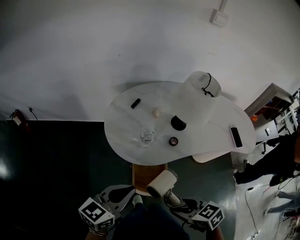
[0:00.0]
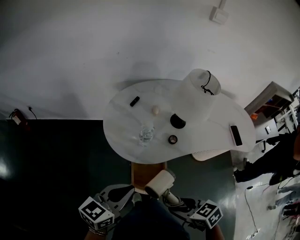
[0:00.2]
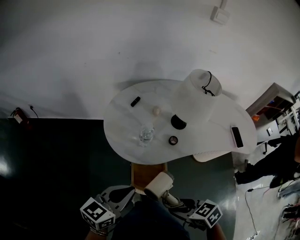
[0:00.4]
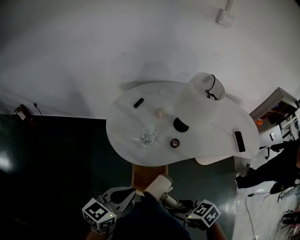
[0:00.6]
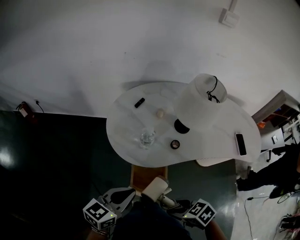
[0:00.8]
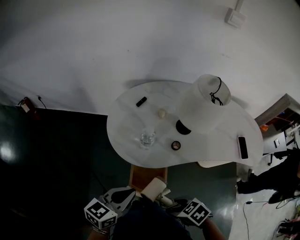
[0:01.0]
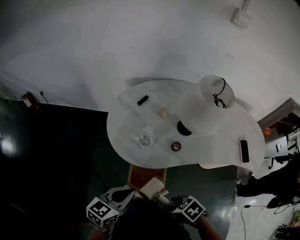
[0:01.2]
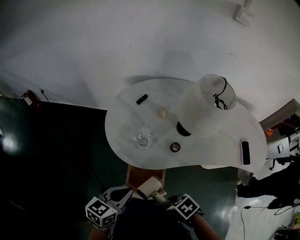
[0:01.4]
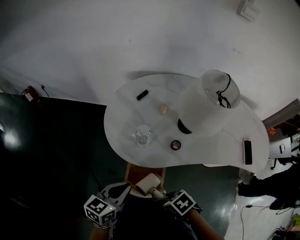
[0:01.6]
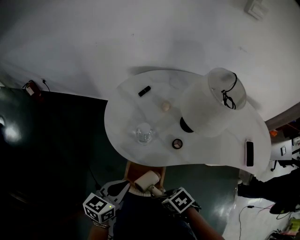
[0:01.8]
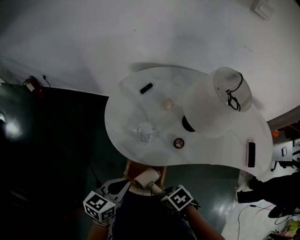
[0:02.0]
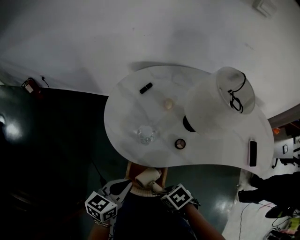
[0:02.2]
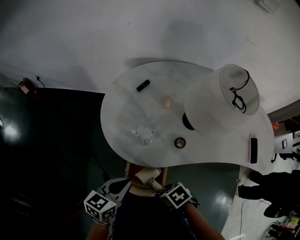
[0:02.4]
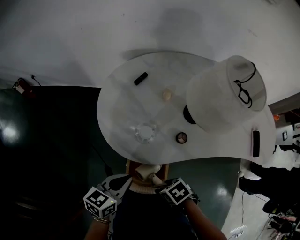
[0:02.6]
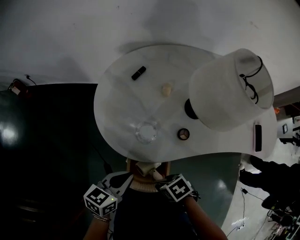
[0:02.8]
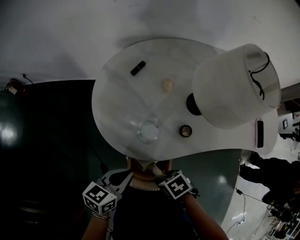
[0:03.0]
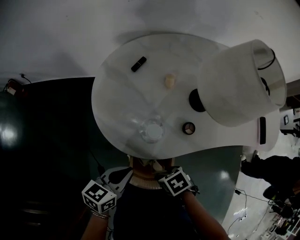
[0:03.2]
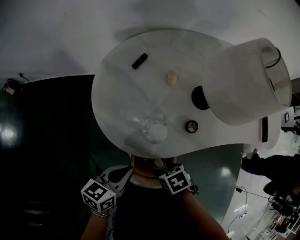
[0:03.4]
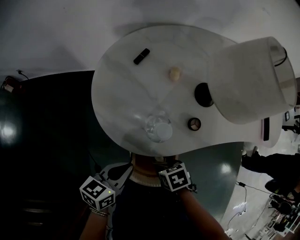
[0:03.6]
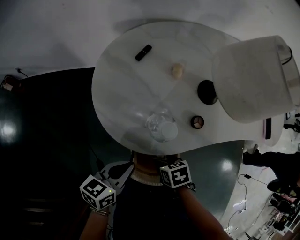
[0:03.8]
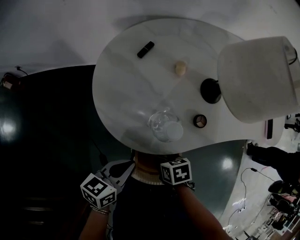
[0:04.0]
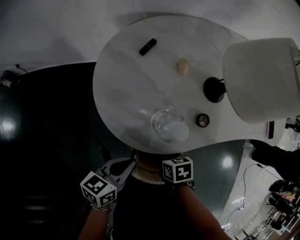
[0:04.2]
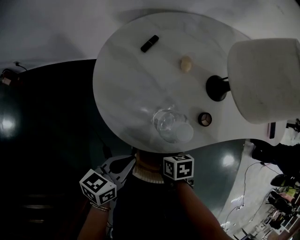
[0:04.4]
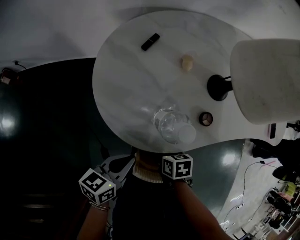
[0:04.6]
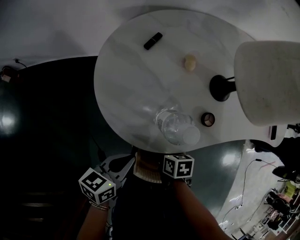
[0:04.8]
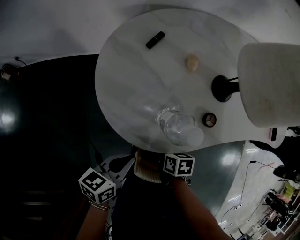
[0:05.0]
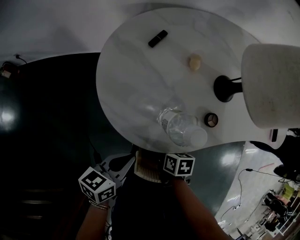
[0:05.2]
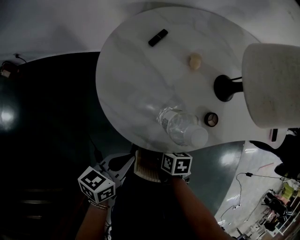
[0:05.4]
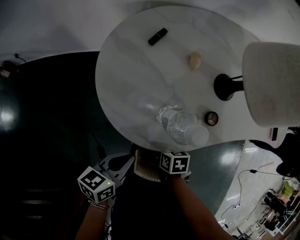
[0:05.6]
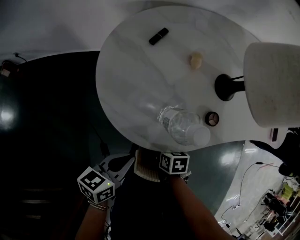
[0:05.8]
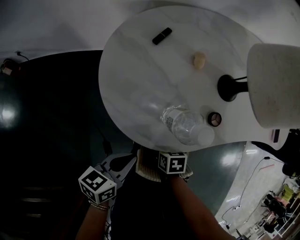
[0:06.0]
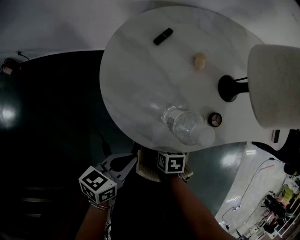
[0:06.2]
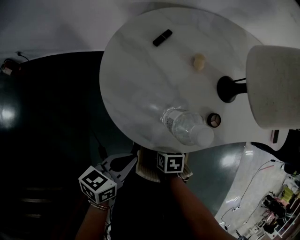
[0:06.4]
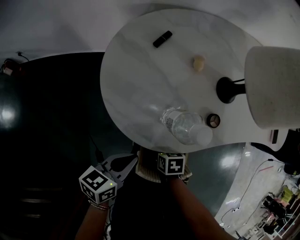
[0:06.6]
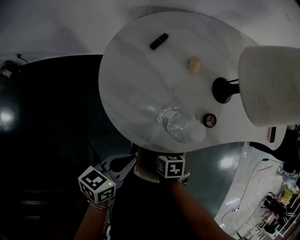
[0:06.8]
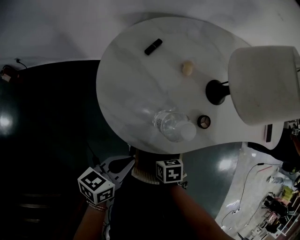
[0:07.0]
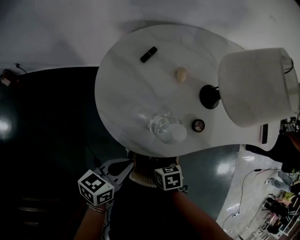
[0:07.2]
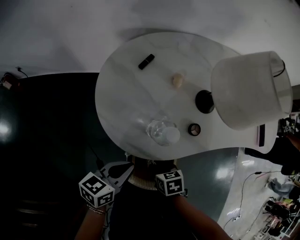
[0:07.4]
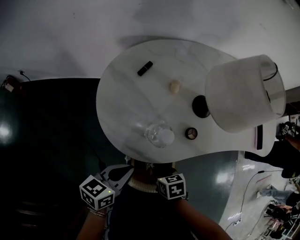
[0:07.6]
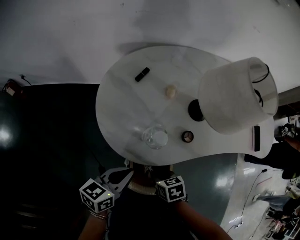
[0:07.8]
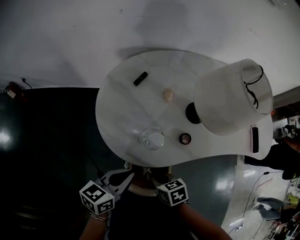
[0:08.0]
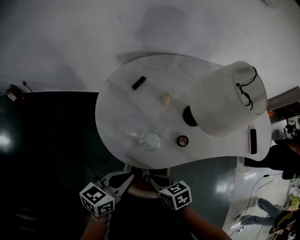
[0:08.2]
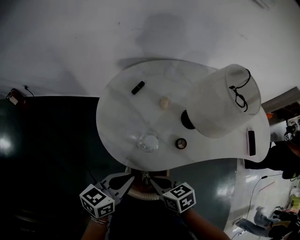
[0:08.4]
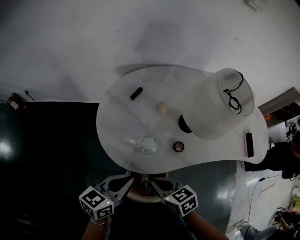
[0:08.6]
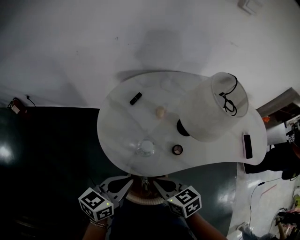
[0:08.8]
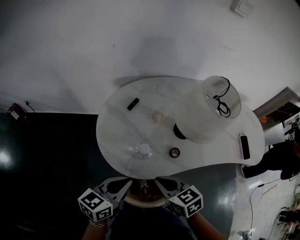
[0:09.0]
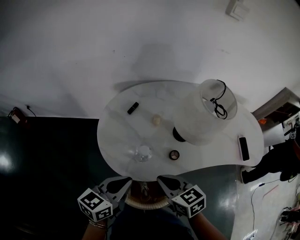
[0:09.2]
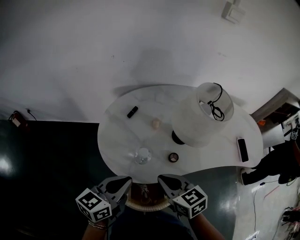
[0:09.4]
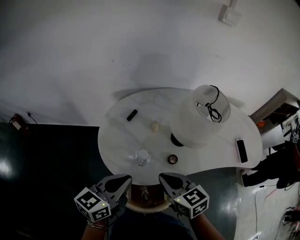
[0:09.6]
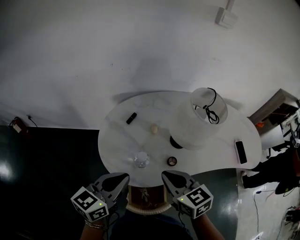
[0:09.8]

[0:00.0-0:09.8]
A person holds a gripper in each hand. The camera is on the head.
0:00.0 to 0:01.4: The two grippers go some 10 cm downward. The right gripper swivels approximately 30 degrees.
0:01.4 to 0:02.8: The left gripper ends up some 10 cm from where it was. The right gripper ends up approximately 10 cm from where it was.
0:02.8 to 0:04.2: The right gripper ends up roughly 10 cm from where it was, and changes its angle by roughly 30 degrees, while the left gripper shifts by some 5 cm.
0:04.2 to 0:05.6: The right gripper travels downward by some 5 cm.
0:05.6 to 0:07.0: There are only small adjustments of the grippers.
0:07.0 to 0:08.4: The right gripper goes about 15 cm upward, turns by roughly 30 degrees, and closes its fingers; the left gripper goes about 10 cm upward.
0:08.4 to 0:09.8: The two grippers go roughly 15 cm upward and forward. The right gripper changes its angle by about 30 degrees.

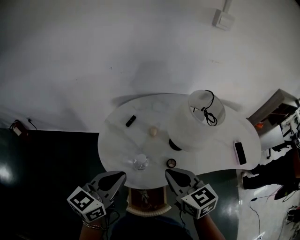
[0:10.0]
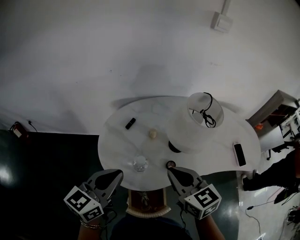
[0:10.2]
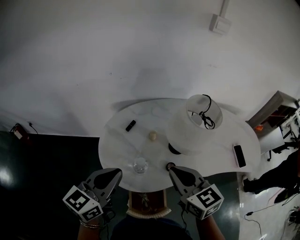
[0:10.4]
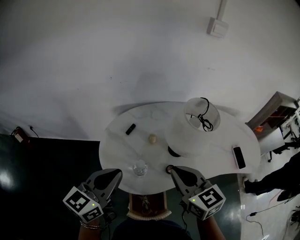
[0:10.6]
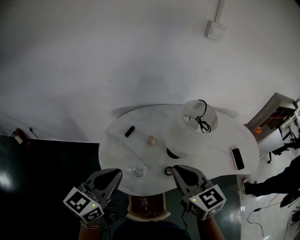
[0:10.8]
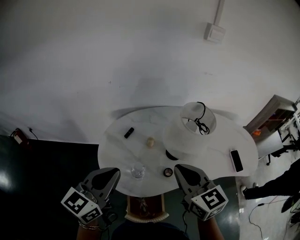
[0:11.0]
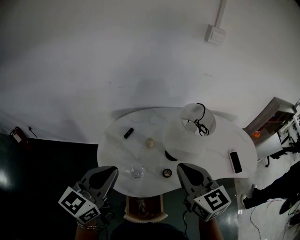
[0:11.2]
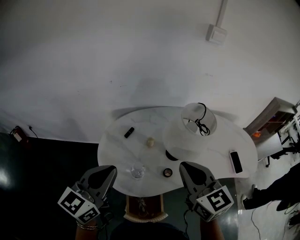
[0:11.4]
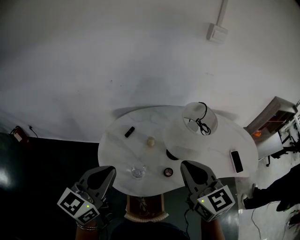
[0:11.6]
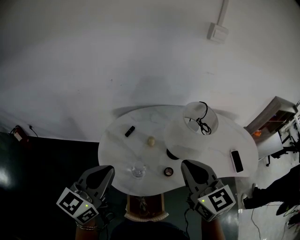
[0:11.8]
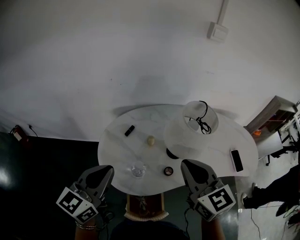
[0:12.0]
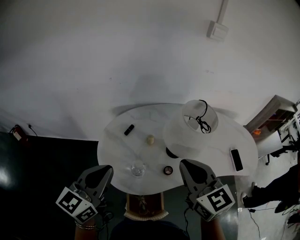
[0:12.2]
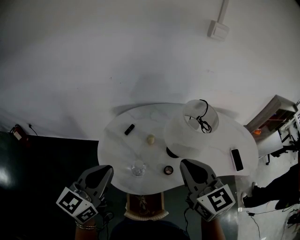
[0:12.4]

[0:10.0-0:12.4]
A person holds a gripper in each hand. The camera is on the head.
0:10.0 to 0:11.2: Both grippers move upward, some 10 cm.
0:11.2 to 0:12.4: There are only small adjustments of the grippers.

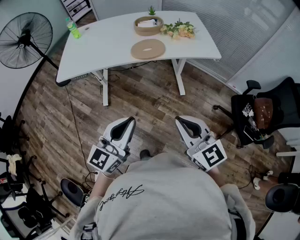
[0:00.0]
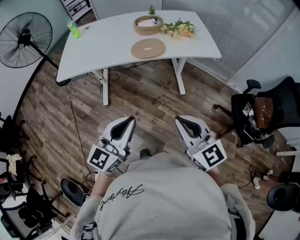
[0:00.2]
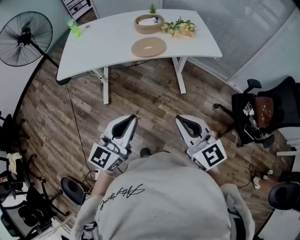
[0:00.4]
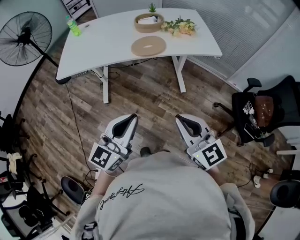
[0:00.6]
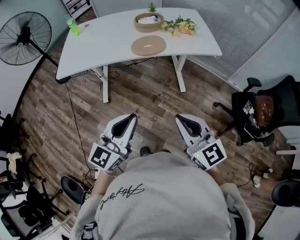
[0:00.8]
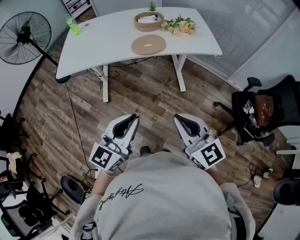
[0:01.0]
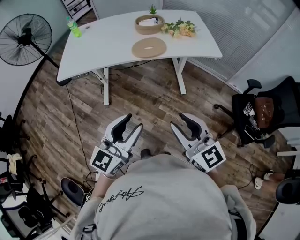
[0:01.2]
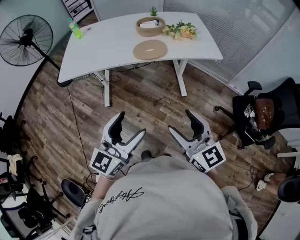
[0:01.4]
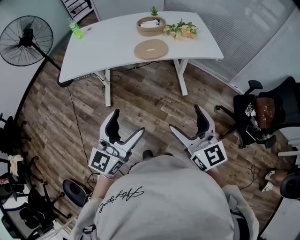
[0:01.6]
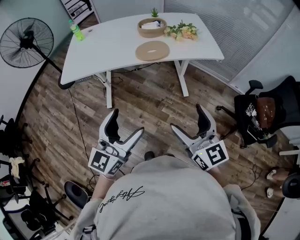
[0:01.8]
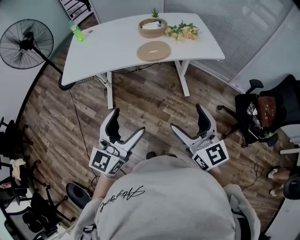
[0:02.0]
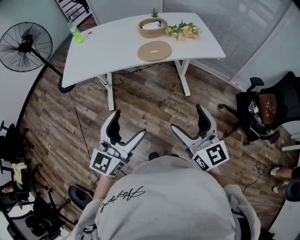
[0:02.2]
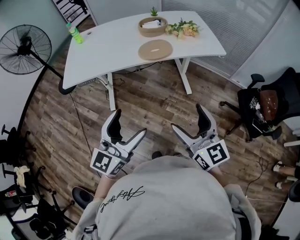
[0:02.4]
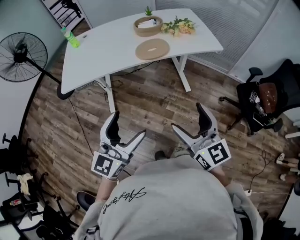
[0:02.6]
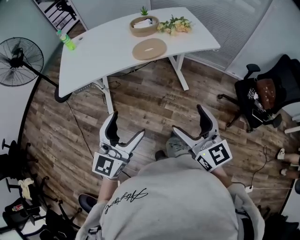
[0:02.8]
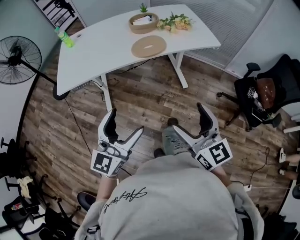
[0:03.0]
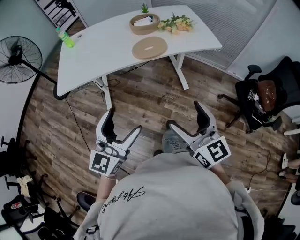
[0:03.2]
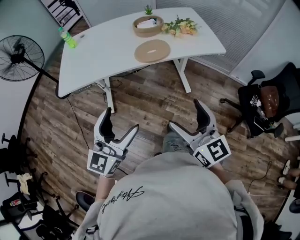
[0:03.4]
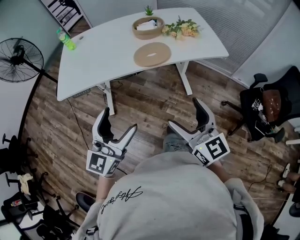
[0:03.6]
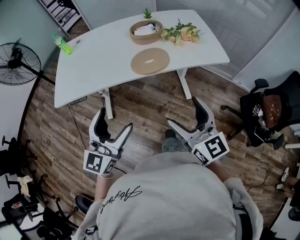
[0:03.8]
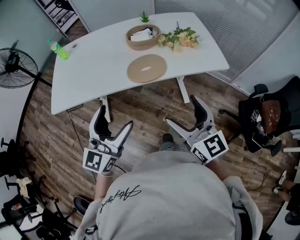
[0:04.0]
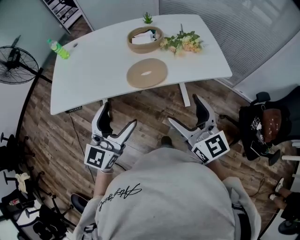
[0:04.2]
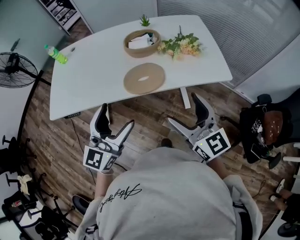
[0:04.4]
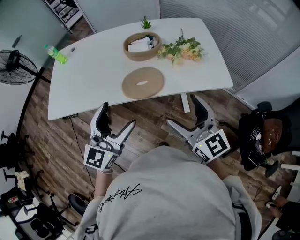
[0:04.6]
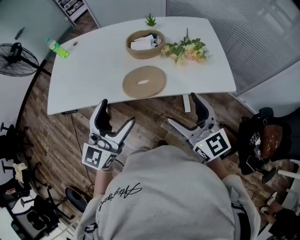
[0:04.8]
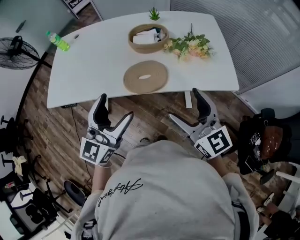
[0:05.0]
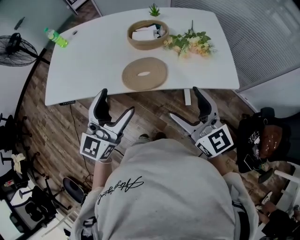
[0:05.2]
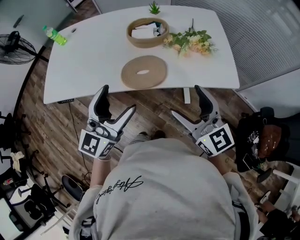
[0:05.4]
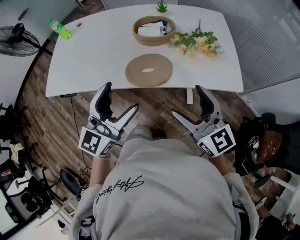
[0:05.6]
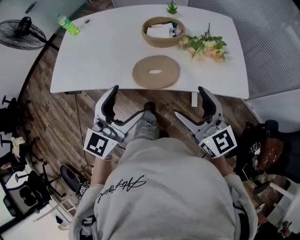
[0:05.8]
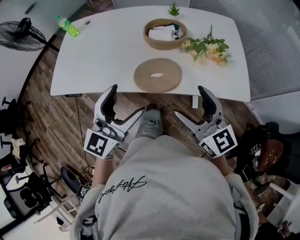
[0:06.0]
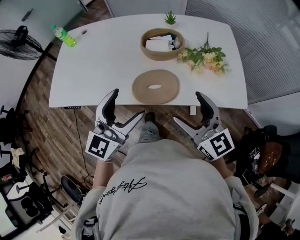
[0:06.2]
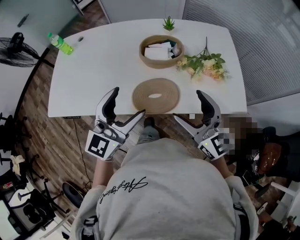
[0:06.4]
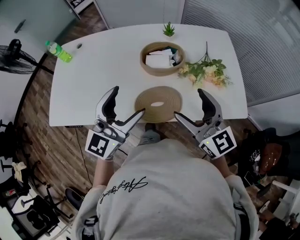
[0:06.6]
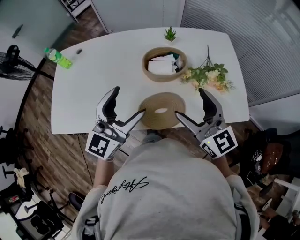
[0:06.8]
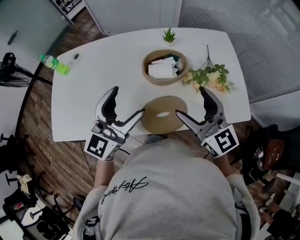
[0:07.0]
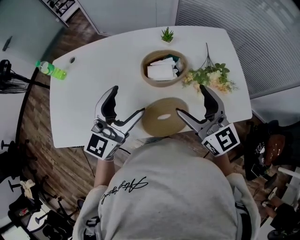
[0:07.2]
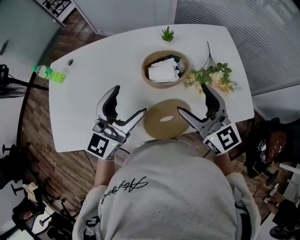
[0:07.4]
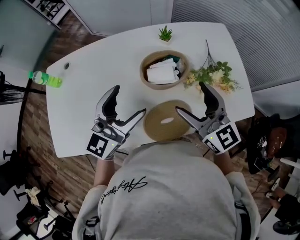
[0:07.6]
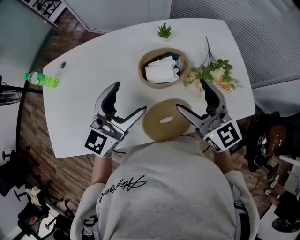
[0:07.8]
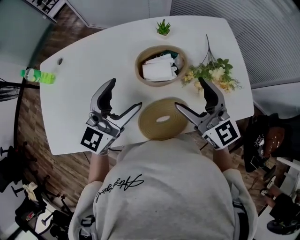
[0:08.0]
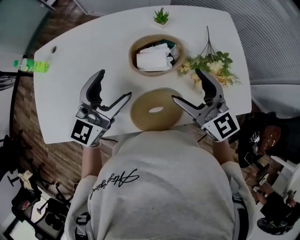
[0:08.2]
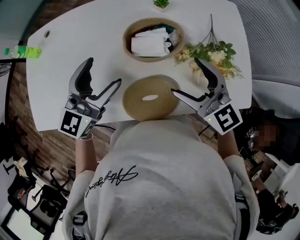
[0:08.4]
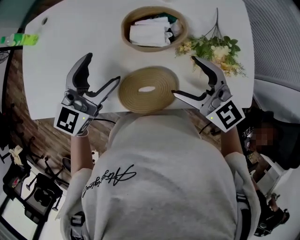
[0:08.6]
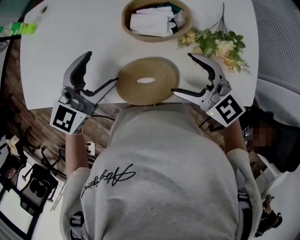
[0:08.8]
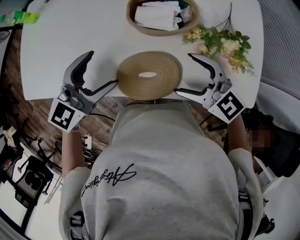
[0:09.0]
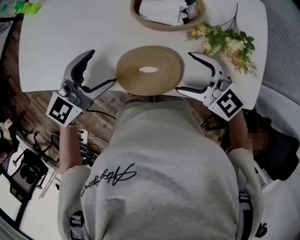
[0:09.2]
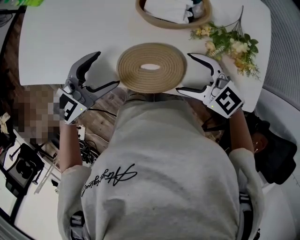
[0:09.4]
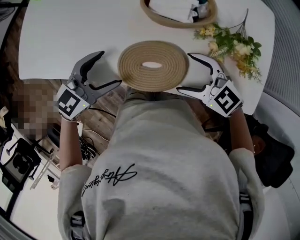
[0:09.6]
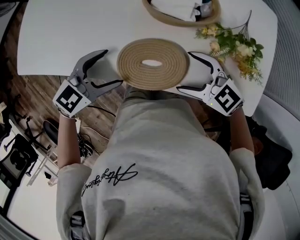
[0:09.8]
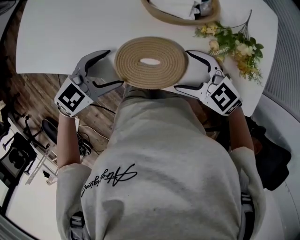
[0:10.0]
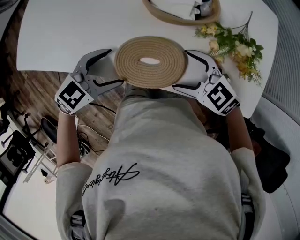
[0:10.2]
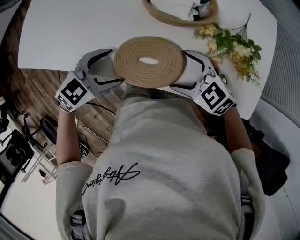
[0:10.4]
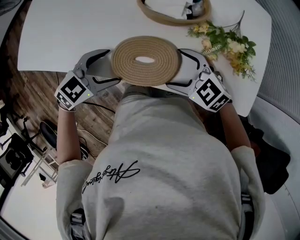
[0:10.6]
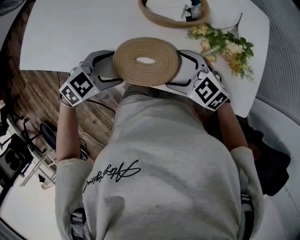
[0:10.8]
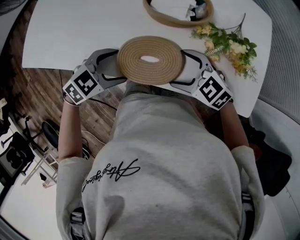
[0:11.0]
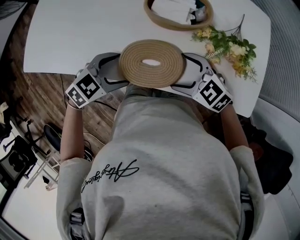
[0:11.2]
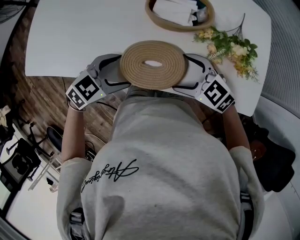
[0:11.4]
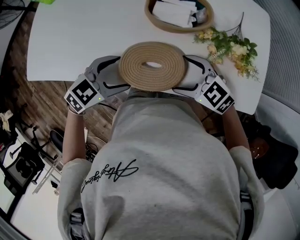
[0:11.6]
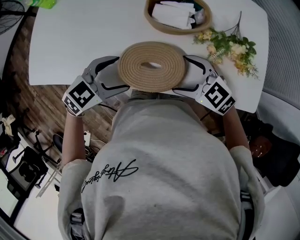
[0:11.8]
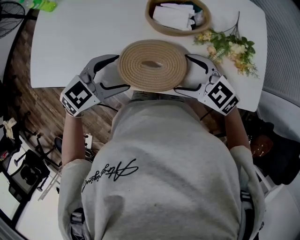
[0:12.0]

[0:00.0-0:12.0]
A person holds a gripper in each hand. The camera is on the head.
0:00.0 to 0:01.6: The left gripper opens; the right gripper opens its fingers.
0:01.6 to 0:03.0: The left gripper is displaced to the left by about 5 cm, while the right gripper moves roughly 5 cm.
0:03.0 to 0:04.4: The two grippers go about 25 cm forward.
0:04.4 to 0:06.0: The two grippers go some 10 cm forward.
0:06.0 to 0:07.6: Both grippers travel together forward, about 20 cm.
0:07.6 to 0:09.0: The grippers both shift downward by roughly 10 cm. The left gripper rotates some 20 degrees, while the right gripper swivels roughly 50 degrees.
0:09.0 to 0:10.4: Both grippers travel together downward, some 10 cm. The left gripper changes its angle by roughly 20 degrees.
0:10.4 to 0:12.0: The right gripper moves about 5 cm, while the left gripper goes about 5 cm upward.
